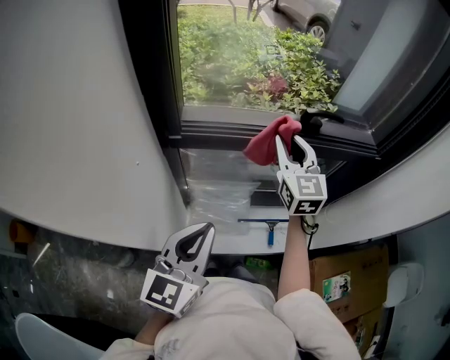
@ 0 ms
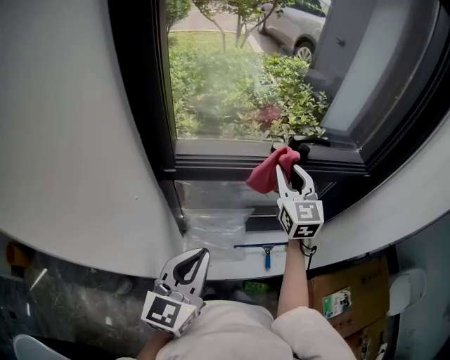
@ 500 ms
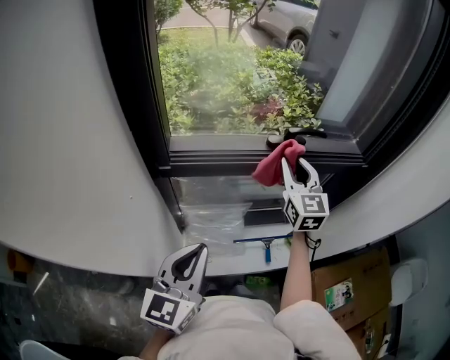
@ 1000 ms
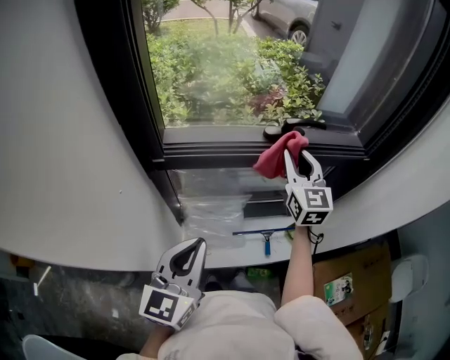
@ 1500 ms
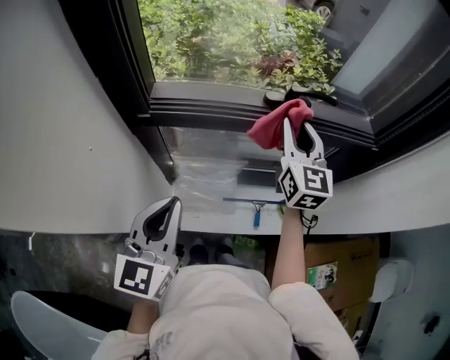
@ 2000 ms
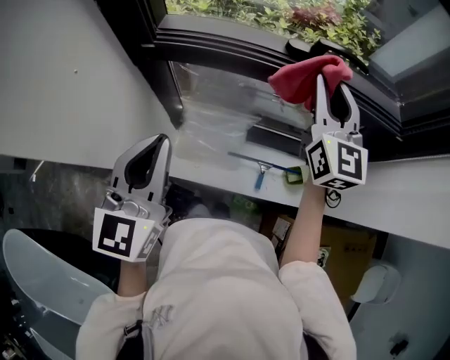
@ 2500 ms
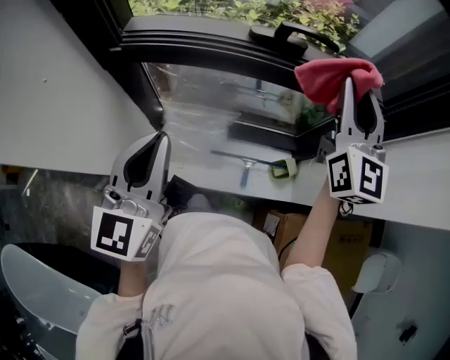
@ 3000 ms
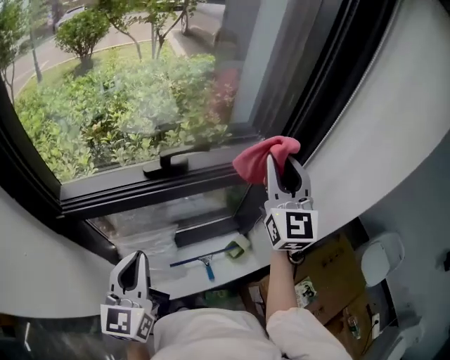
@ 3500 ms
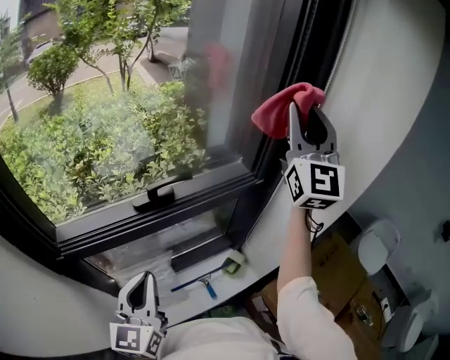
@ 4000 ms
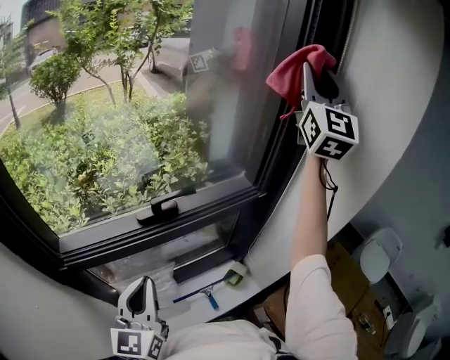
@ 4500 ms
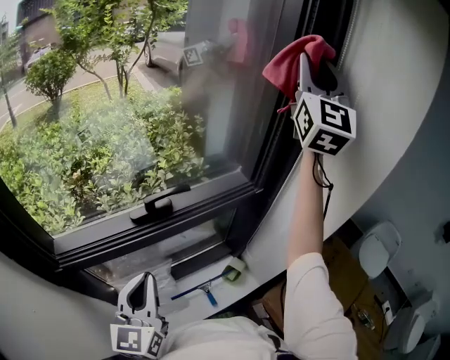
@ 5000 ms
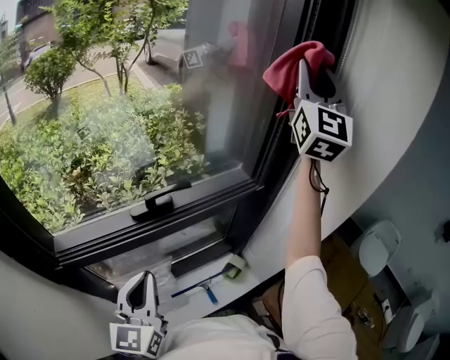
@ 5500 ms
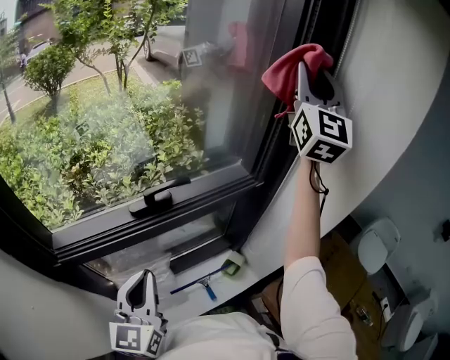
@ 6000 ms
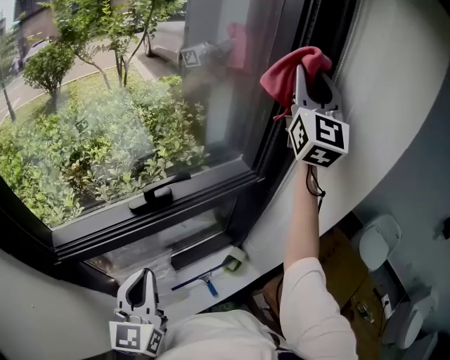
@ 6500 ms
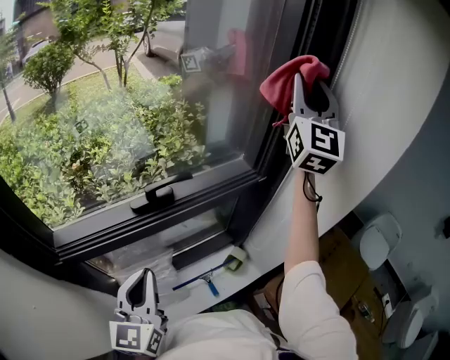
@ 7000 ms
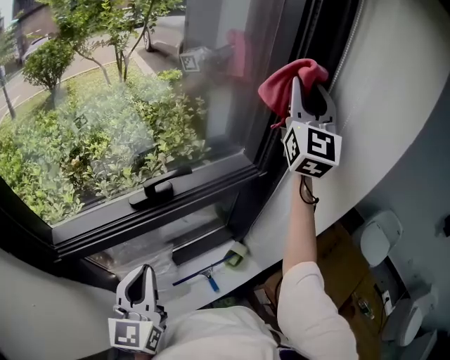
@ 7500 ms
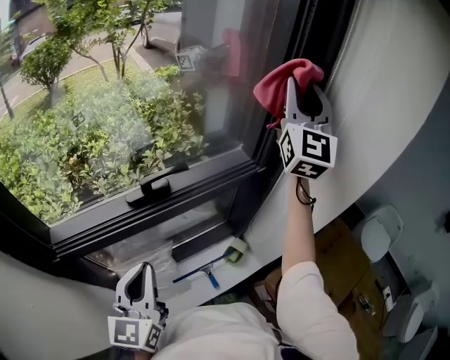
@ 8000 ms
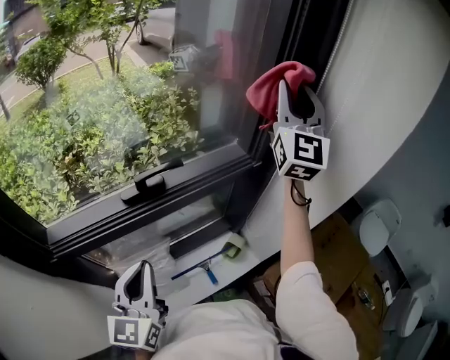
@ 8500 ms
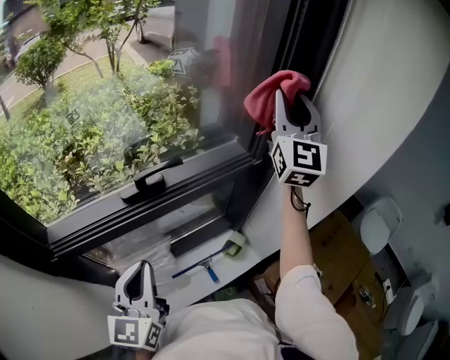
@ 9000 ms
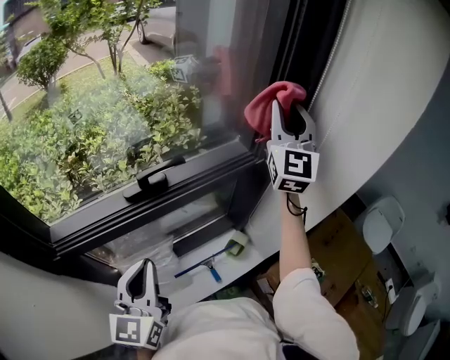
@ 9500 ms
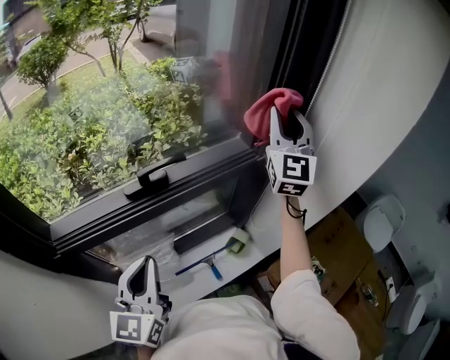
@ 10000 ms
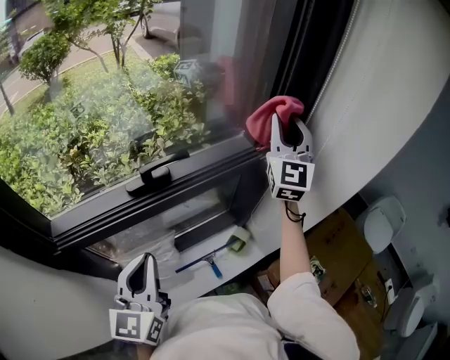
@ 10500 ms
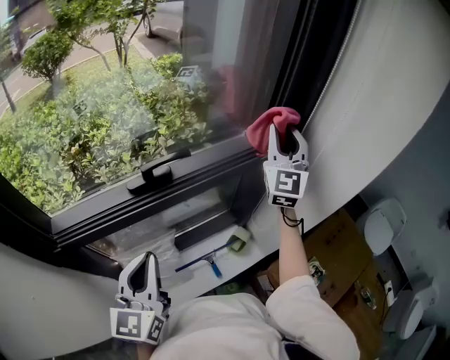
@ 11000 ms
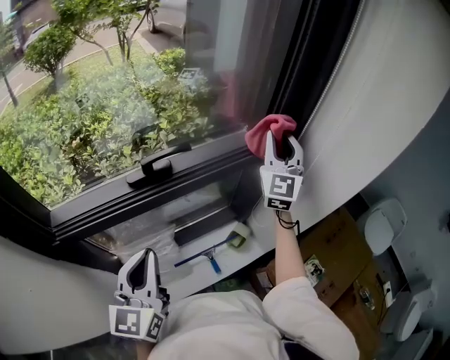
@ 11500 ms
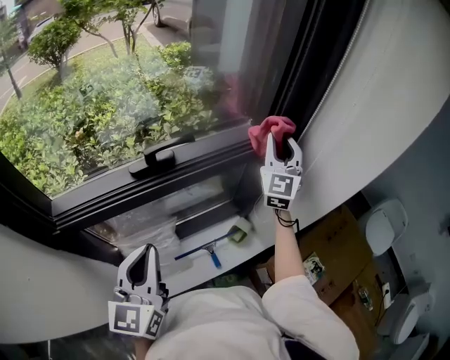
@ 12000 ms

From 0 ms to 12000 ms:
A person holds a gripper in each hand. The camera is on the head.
From 0 ms to 2000 ms: The right gripper heads to the right, covering about 5 cm.
From 2000 ms to 4000 ms: The left gripper changes place by some 15 cm. Meanwhile the right gripper goes roughly 30 cm upward, and tips its fingers upward by some 30 degrees.
From 4000 ms to 6000 ms: The right gripper moves upward and forward, roughly 10 cm.
From 6000 ms to 8000 ms: The right gripper goes some 10 cm downward.
From 8000 ms to 10000 ms: The right gripper travels downward by approximately 10 cm.
From 10000 ms to 12000 ms: The right gripper travels downward by some 15 cm.

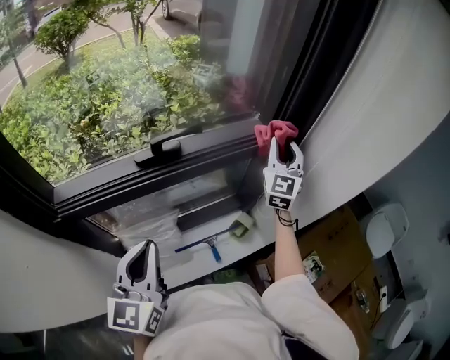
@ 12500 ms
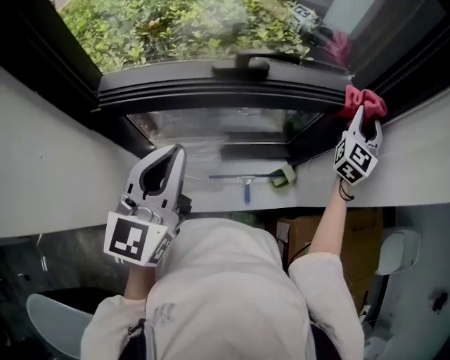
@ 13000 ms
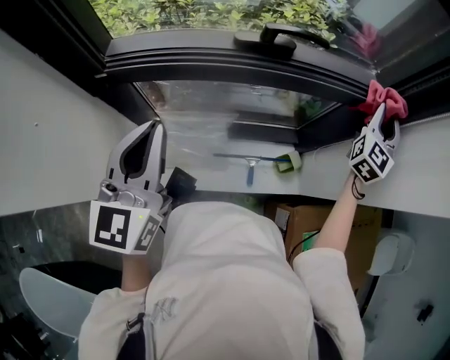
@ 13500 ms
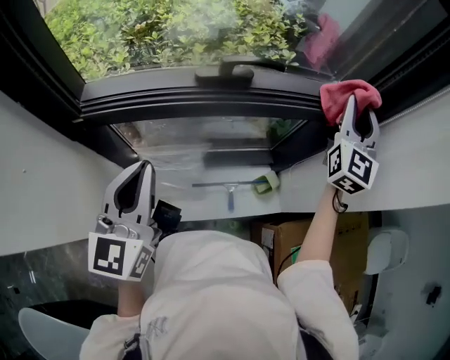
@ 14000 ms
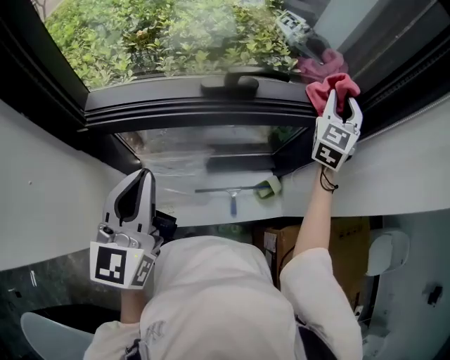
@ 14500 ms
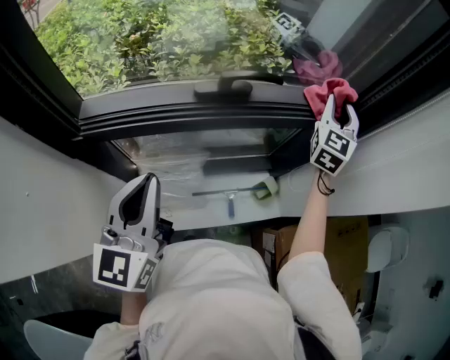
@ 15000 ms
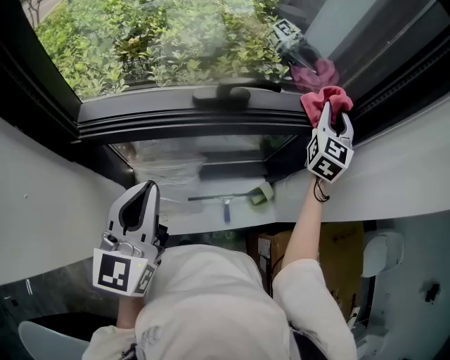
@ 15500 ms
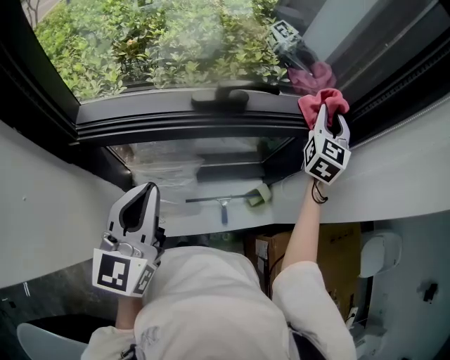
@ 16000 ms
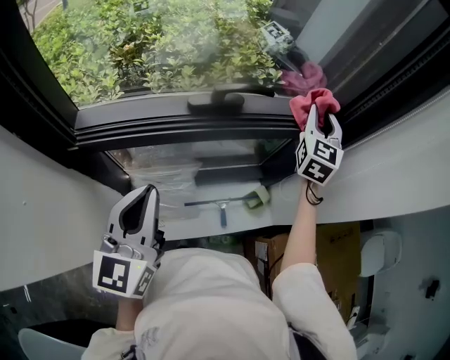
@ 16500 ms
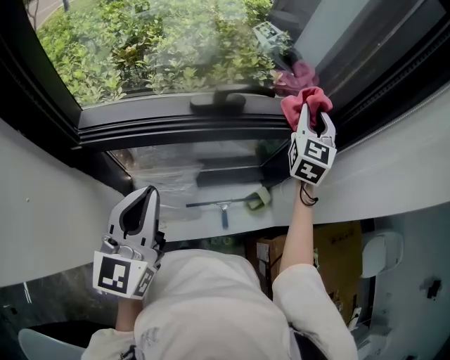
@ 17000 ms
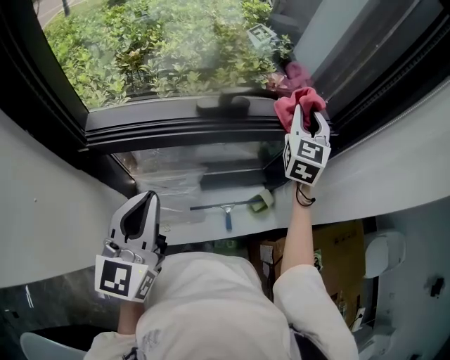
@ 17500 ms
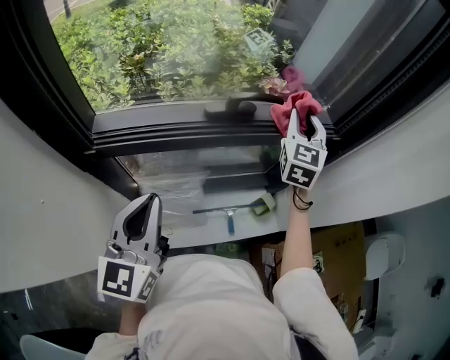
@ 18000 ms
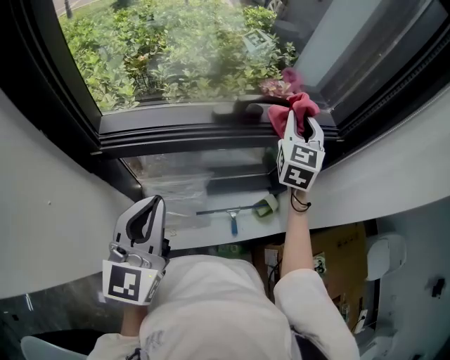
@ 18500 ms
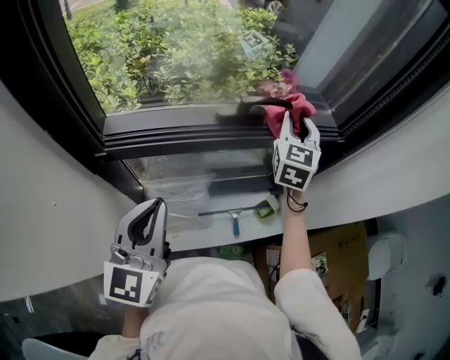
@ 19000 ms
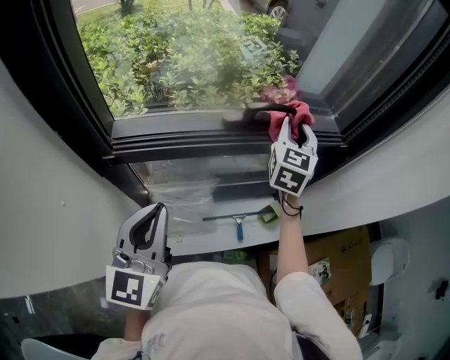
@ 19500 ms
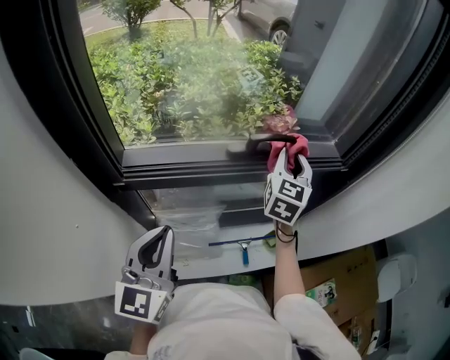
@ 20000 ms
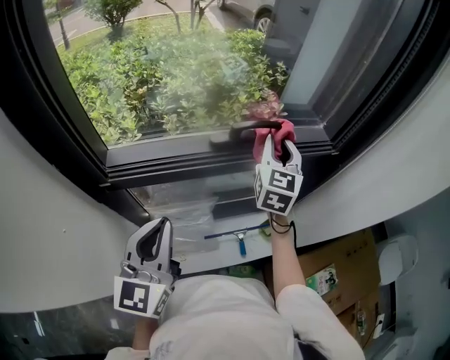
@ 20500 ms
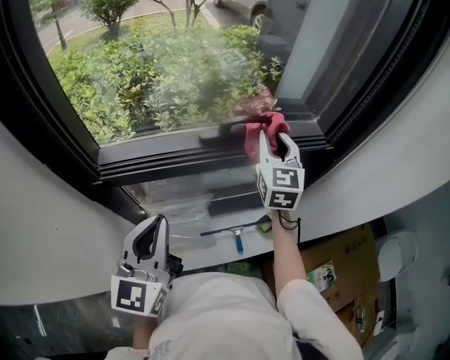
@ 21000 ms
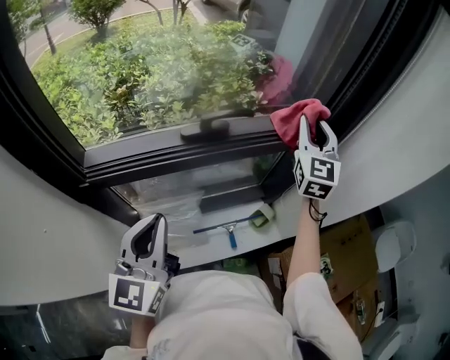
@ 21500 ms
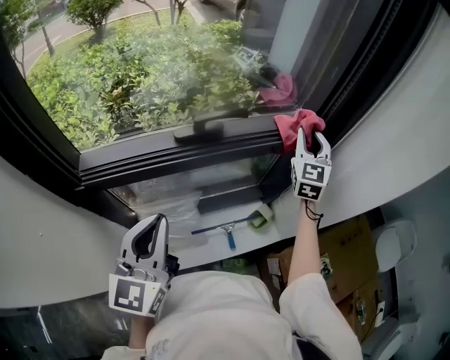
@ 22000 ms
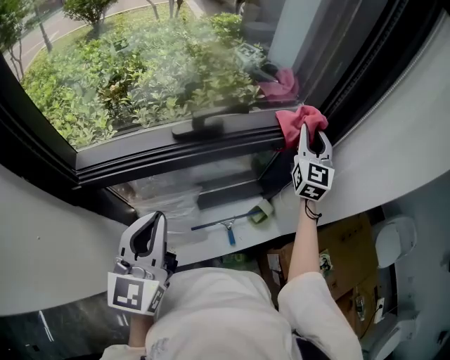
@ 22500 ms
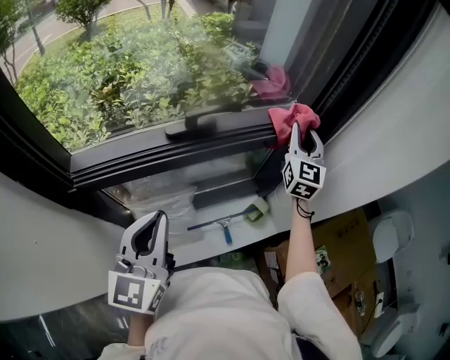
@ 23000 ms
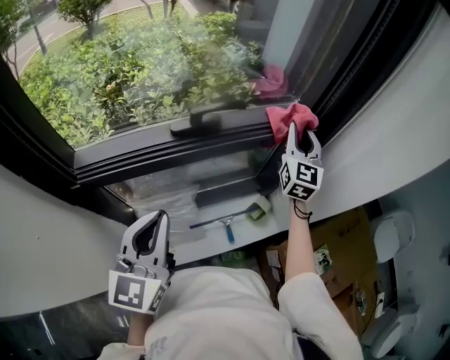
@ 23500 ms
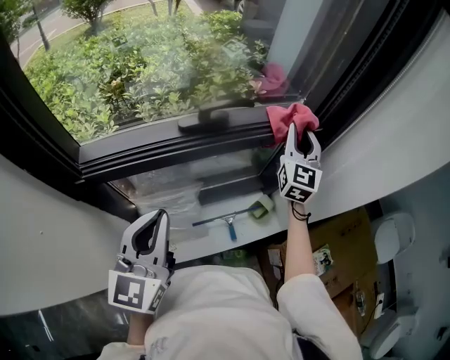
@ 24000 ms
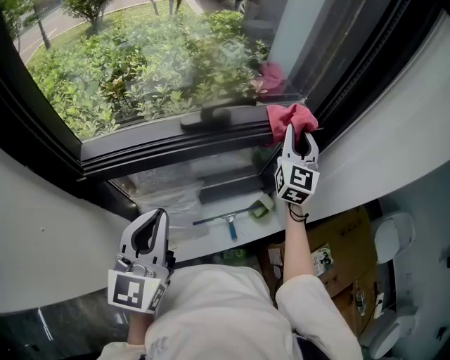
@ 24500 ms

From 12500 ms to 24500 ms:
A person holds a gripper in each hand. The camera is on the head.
From 12500 ms to 14500 ms: Both grippers move to the left, approximately 10 cm.
From 14500 ms to 16500 ms: The grippers make only small movements.
From 16500 ms to 18500 ms: The right gripper goes roughly 10 cm to the left.
From 18500 ms to 20500 ms: The grippers make only small movements.
From 20500 ms to 22500 ms: The left gripper travels to the right by about 5 cm, while the right gripper heads to the right, covering approximately 20 cm.
From 22500 ms to 24500 ms: The right gripper travels to the left by about 5 cm.

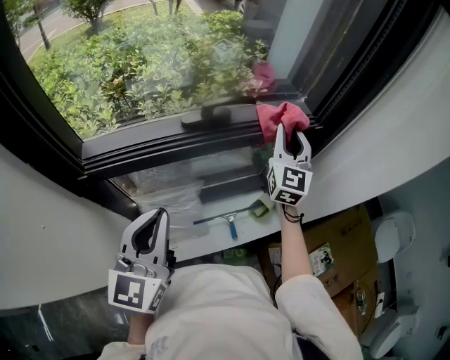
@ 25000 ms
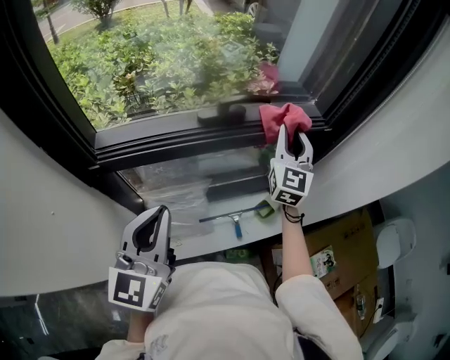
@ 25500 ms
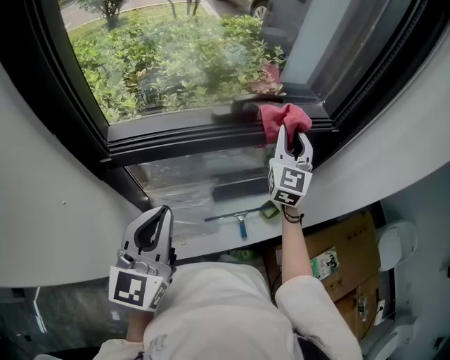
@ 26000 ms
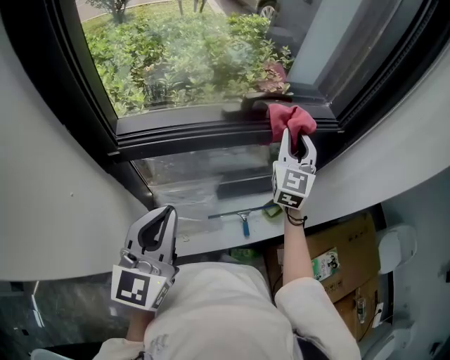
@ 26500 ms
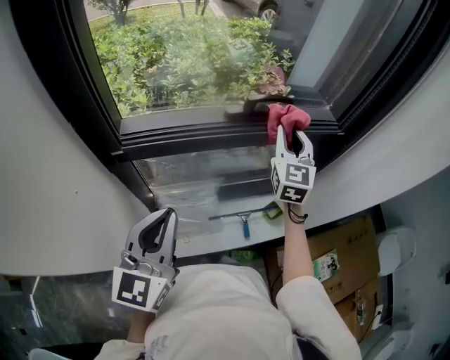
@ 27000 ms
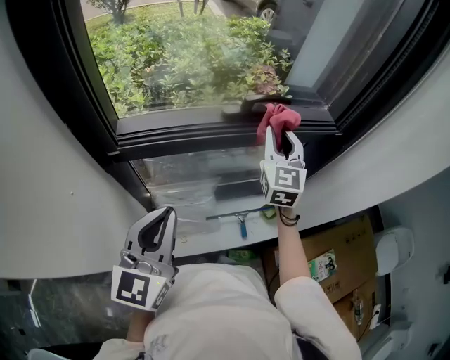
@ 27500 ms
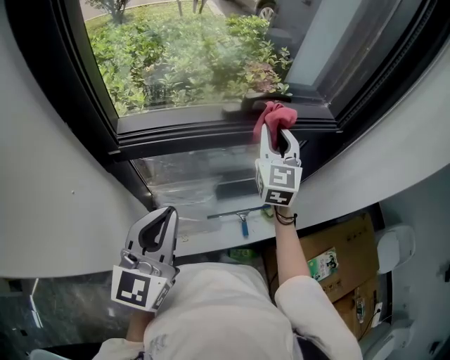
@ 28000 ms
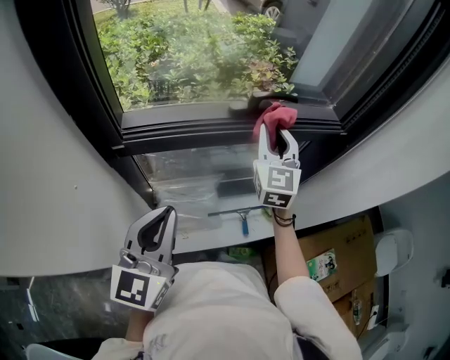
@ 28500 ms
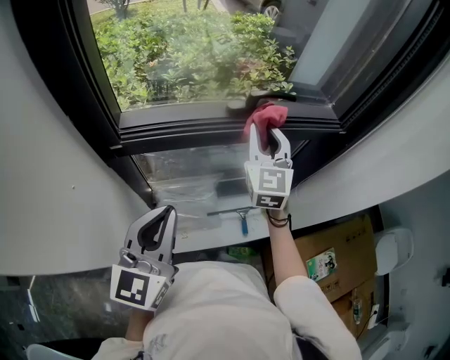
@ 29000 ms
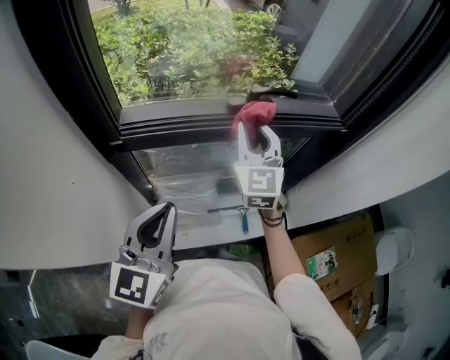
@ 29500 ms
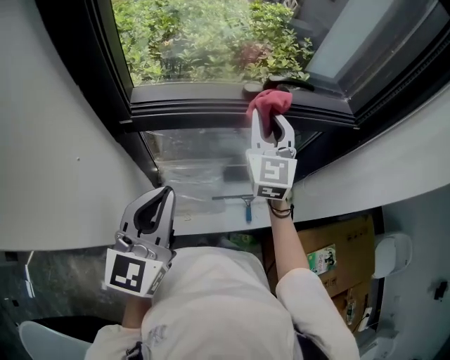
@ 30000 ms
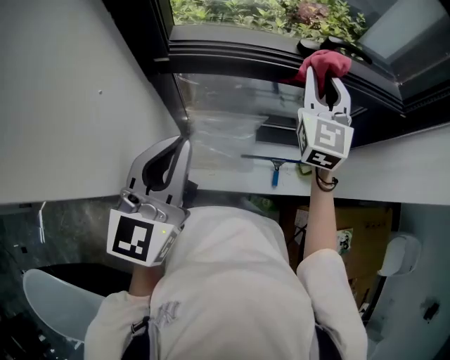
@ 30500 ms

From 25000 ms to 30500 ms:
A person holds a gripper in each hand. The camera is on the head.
From 25000 ms to 27000 ms: The right gripper travels to the left by roughly 10 cm. Meanwhile the left gripper heads backward and to the left, covering roughly 10 cm.
From 27000 ms to 28500 ms: The right gripper travels to the left by some 5 cm.
From 28500 ms to 30500 ms: The right gripper goes approximately 5 cm to the left.
